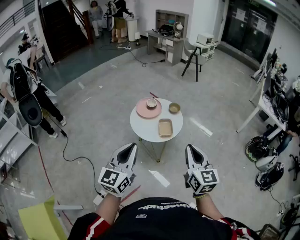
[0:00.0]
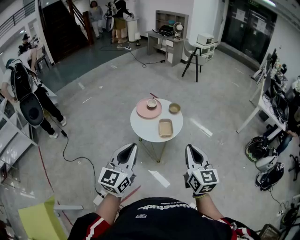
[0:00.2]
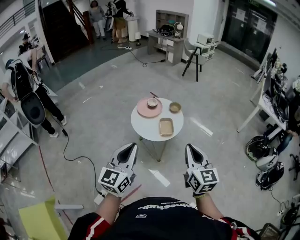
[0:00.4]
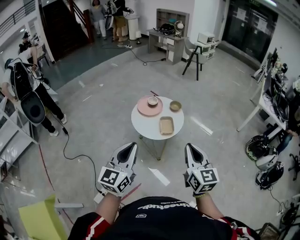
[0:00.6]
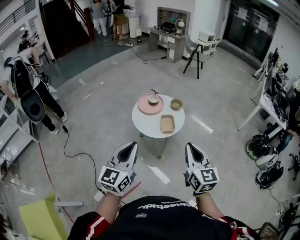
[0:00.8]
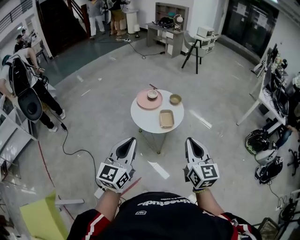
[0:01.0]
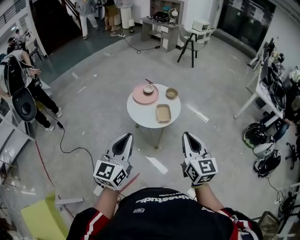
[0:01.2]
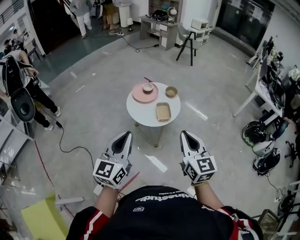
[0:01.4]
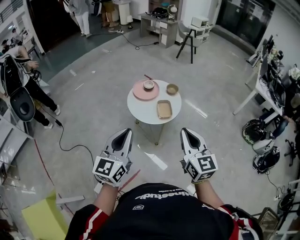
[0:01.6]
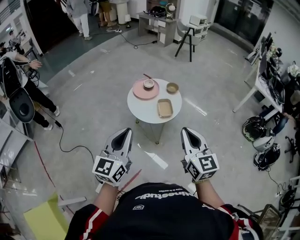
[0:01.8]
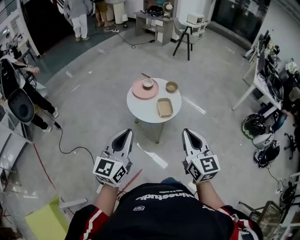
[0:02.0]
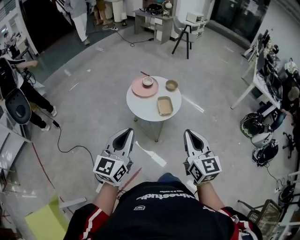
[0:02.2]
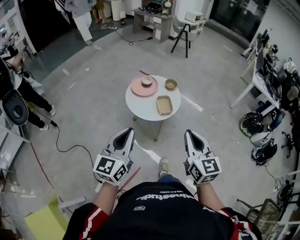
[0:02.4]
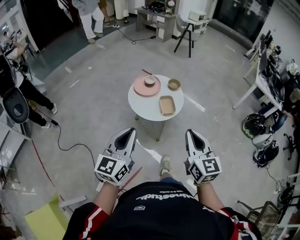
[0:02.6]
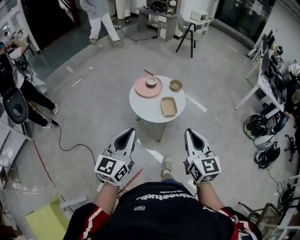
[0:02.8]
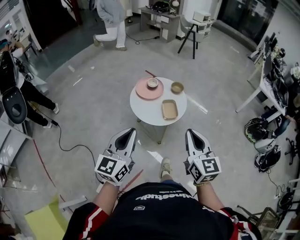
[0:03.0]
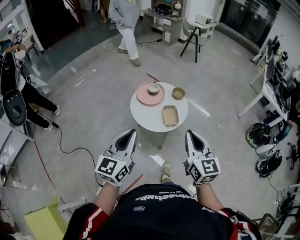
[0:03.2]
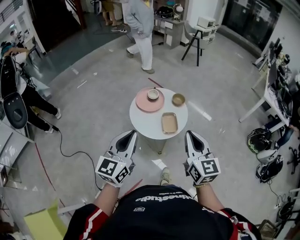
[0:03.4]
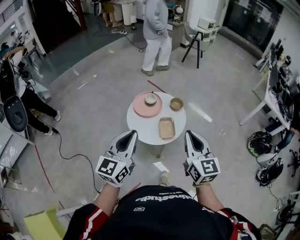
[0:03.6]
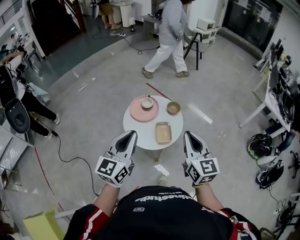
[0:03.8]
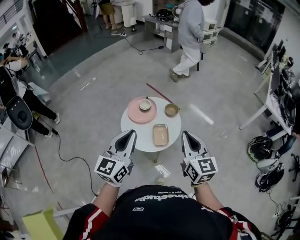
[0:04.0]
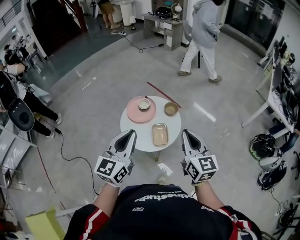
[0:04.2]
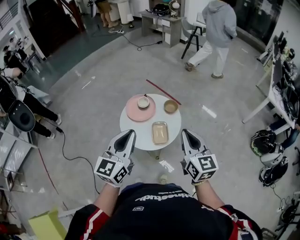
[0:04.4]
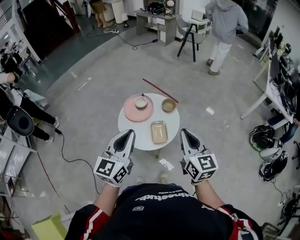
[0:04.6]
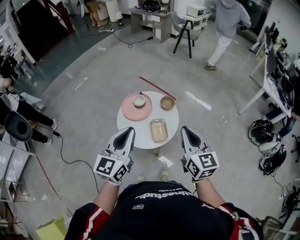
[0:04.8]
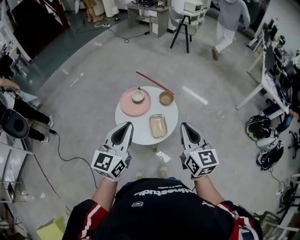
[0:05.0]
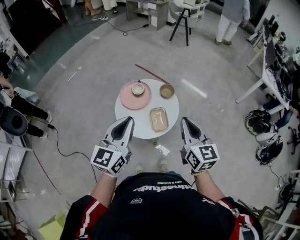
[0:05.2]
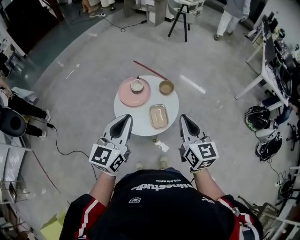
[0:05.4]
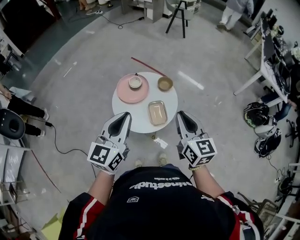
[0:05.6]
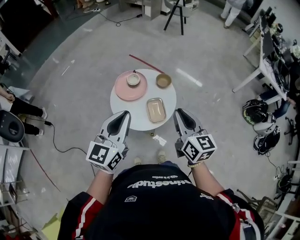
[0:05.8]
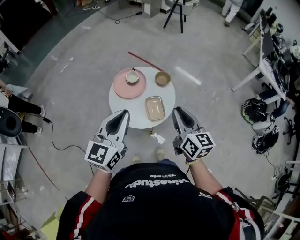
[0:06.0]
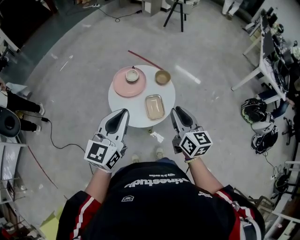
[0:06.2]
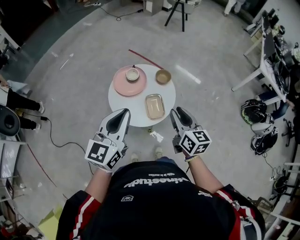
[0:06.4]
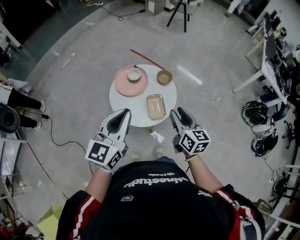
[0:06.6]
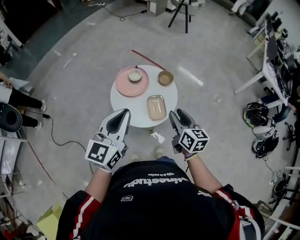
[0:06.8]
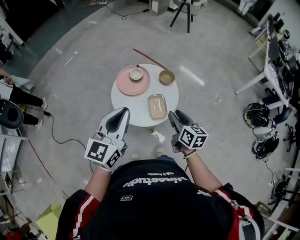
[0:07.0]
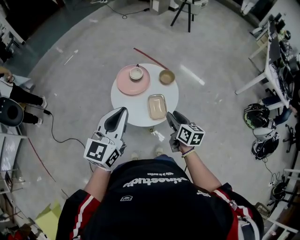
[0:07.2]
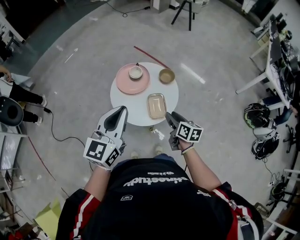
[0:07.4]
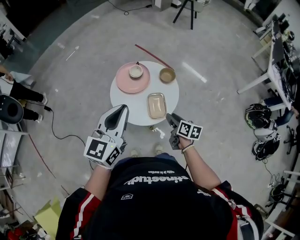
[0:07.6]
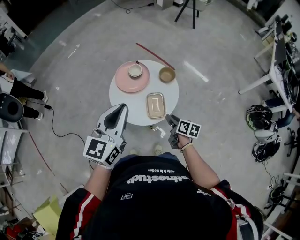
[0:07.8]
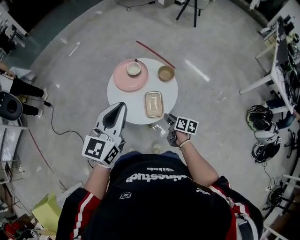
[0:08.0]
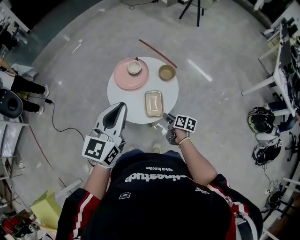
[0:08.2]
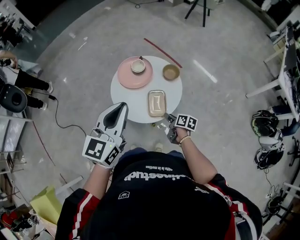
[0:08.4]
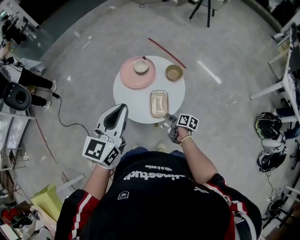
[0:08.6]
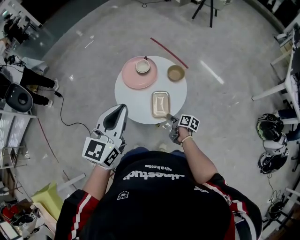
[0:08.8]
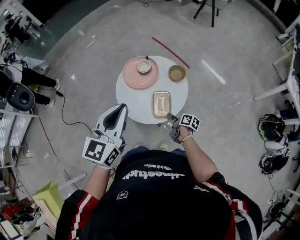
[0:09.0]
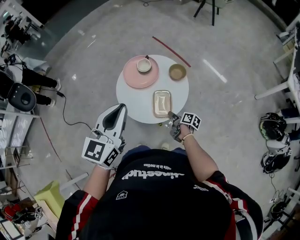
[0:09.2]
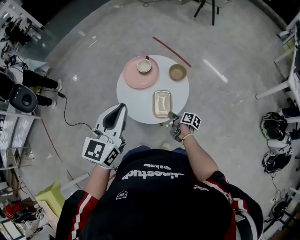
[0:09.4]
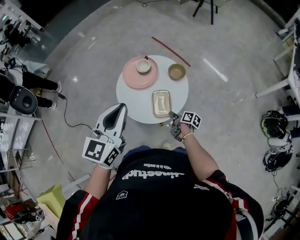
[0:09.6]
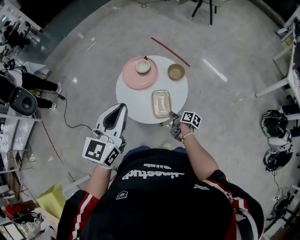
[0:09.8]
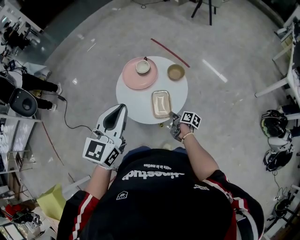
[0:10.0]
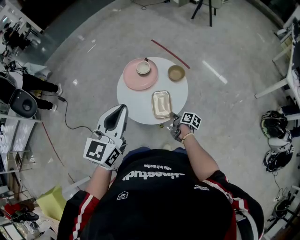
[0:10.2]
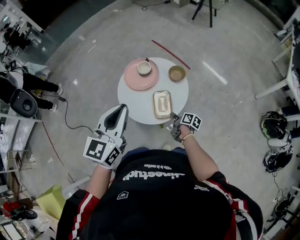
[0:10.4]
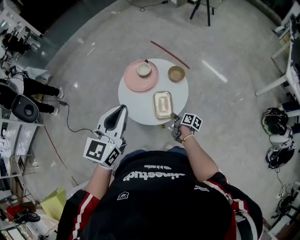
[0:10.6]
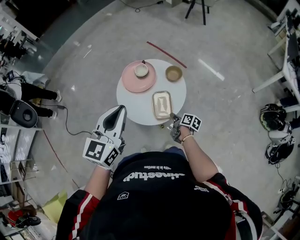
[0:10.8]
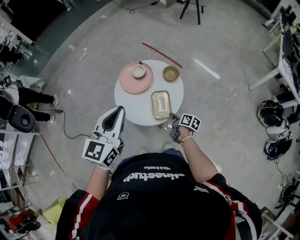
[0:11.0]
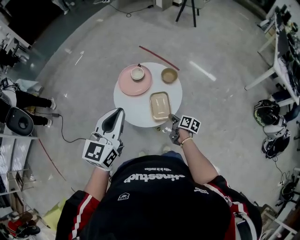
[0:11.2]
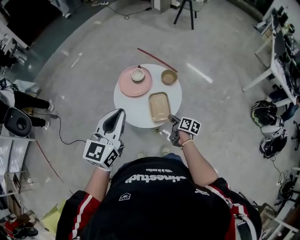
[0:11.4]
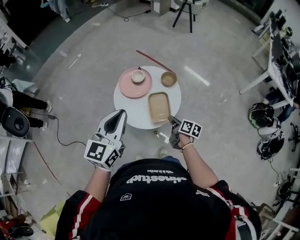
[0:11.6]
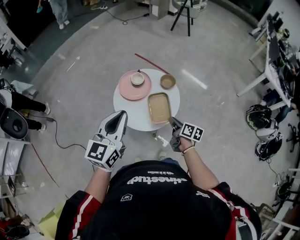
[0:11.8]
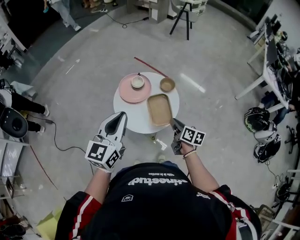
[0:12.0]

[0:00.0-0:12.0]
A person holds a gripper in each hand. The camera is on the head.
0:00.0 to 0:01.6: The right gripper shifts approximately 5 cm to the left.
0:01.6 to 0:03.0: Both grippers move forward, roughly 5 cm.
0:03.0 to 0:04.4: Both grippers move forward and to the right, approximately 25 cm.
0:04.4 to 0:06.0: The right gripper shifts roughly 10 cm downward and to the left. The left gripper ends up about 5 cm from where it was.
0:06.0 to 0:07.6: The right gripper shifts approximately 20 cm downward, turns by some 30 degrees, and opens.
0:07.6 to 0:09.0: The right gripper goes about 15 cm downward, and changes its angle by some 30 degrees.
0:09.0 to 0:10.4: The right gripper closes.
0:10.4 to 0:12.0: The right gripper shifts some 20 cm upward, and changes its angle by roughly 30 degrees; the left gripper moves to the left, roughly 10 cm.

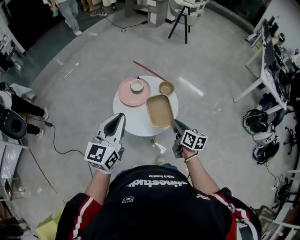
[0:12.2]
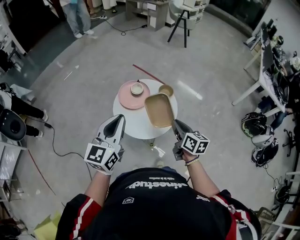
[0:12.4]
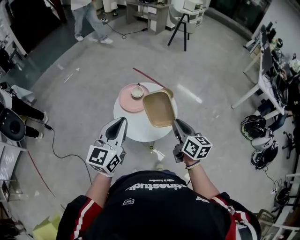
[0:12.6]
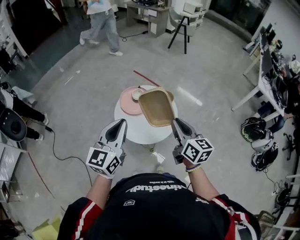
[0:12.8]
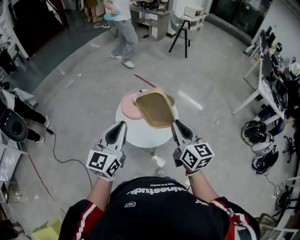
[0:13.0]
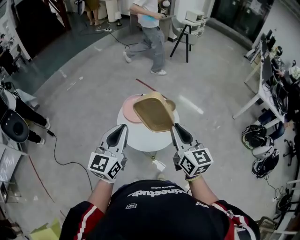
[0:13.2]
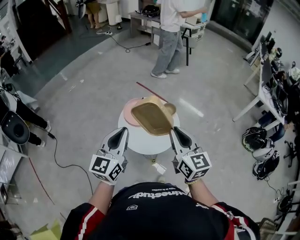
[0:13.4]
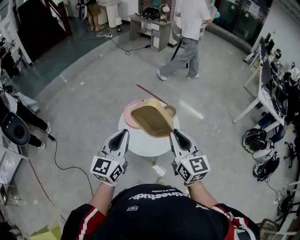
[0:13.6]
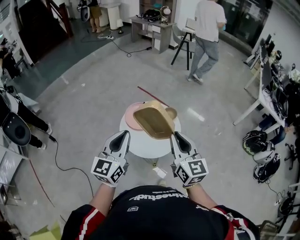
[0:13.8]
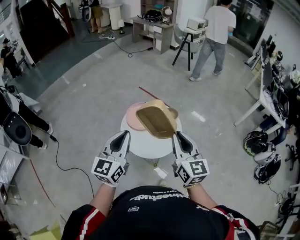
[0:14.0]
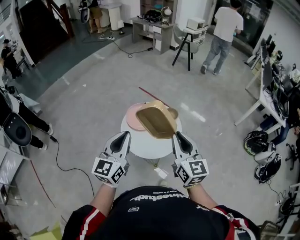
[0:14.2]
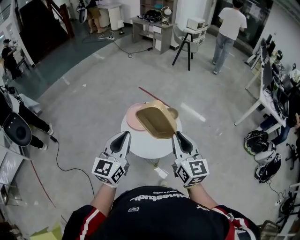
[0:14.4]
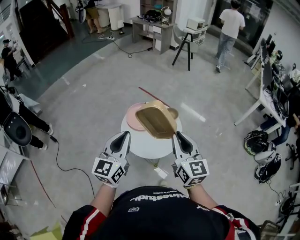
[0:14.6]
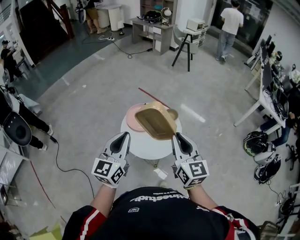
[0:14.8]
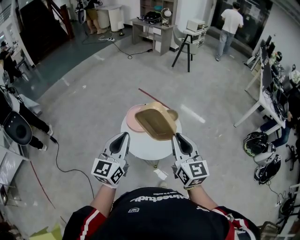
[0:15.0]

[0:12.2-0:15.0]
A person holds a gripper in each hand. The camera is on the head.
0:12.2 to 0:13.6: The right gripper goes approximately 25 cm upward, and changes its angle by roughly 40 degrees.
0:13.6 to 0:15.0: The grippers stay close to where they were, moving slightly.

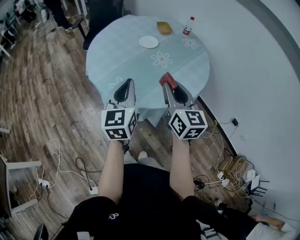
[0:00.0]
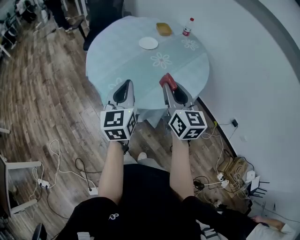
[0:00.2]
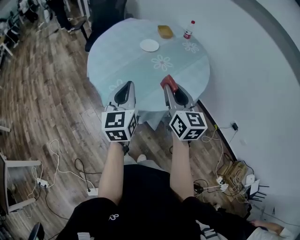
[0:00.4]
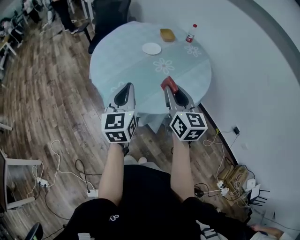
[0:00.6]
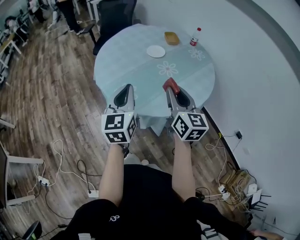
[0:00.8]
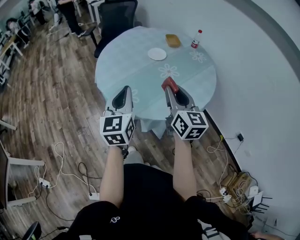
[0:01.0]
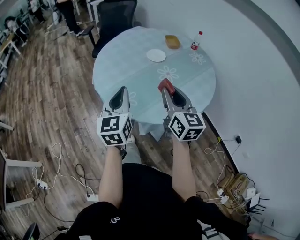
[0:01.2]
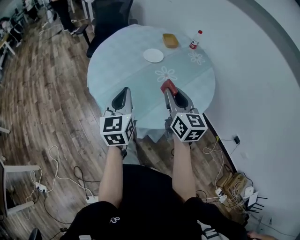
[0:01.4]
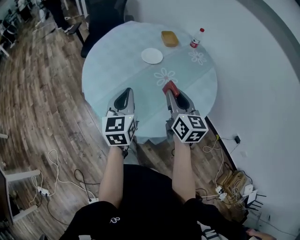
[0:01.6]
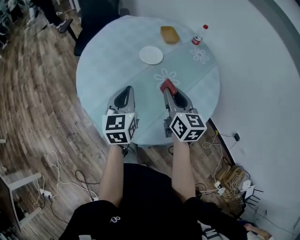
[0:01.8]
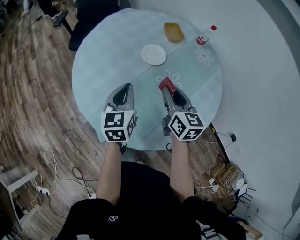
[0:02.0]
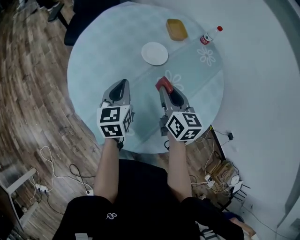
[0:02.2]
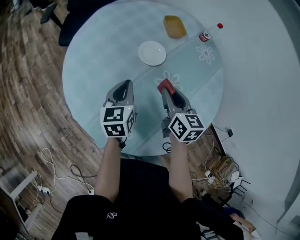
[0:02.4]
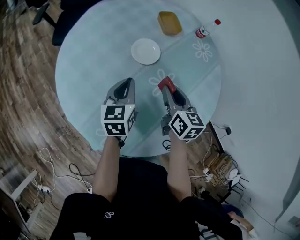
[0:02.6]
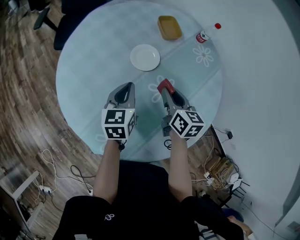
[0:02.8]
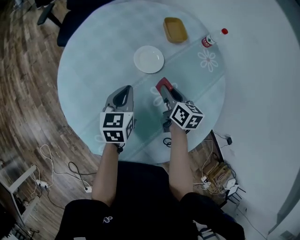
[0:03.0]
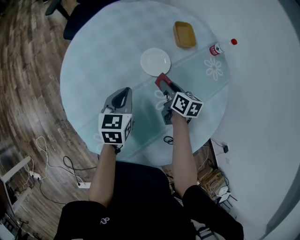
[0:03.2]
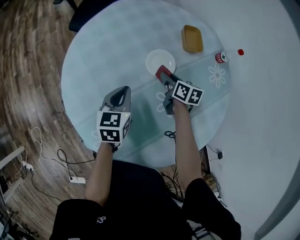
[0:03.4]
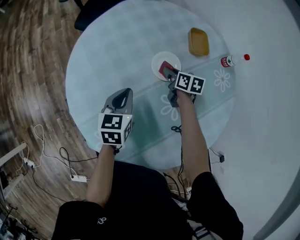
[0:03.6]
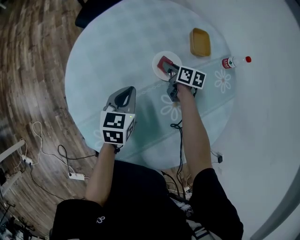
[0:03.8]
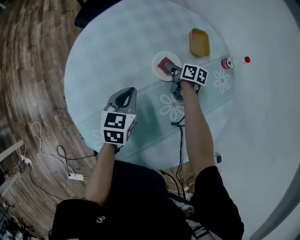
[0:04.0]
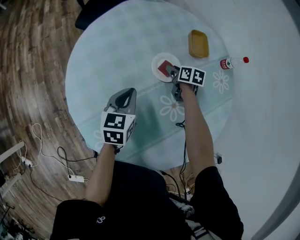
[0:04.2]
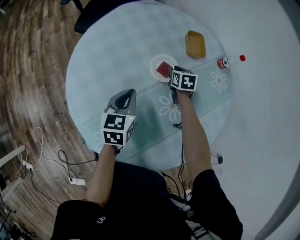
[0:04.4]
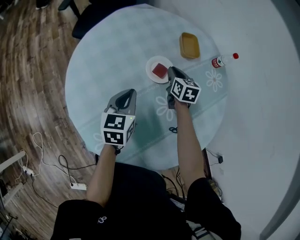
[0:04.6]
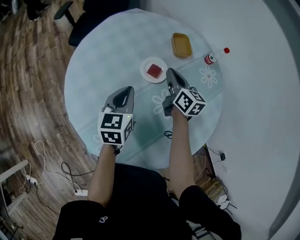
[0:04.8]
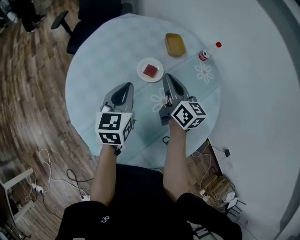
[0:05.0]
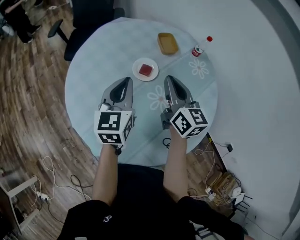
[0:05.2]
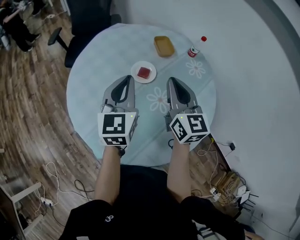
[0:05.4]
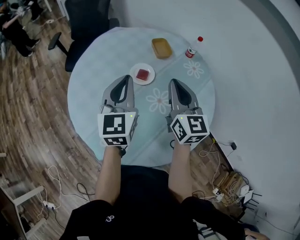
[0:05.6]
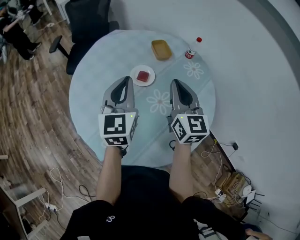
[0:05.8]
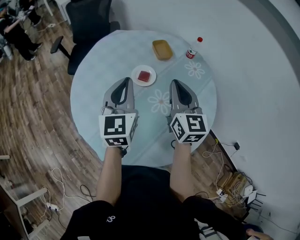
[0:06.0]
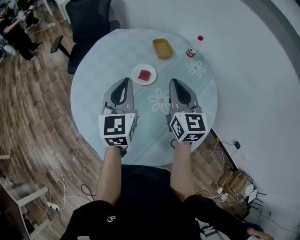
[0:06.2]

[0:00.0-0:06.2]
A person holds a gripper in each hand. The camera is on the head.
0:00.0 to 0:01.6: The grippers both shift forward by about 15 cm.
0:01.6 to 0:03.2: Both grippers move forward and downward, about 35 cm. The right gripper turns by approximately 30 degrees, while the left gripper turns by some 20 degrees.
0:03.2 to 0:04.6: The right gripper goes roughly 10 cm forward, changes its angle by about 20 degrees, and opens, then closes again.
0:04.6 to 0:06.2: The left gripper travels upward by approximately 20 cm, and rotates roughly 30 degrees; the right gripper heads upward and backward, covering roughly 30 cm, and angles its fingers upward, by some 30 degrees.

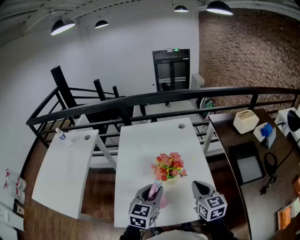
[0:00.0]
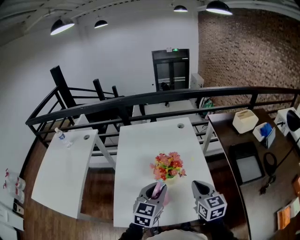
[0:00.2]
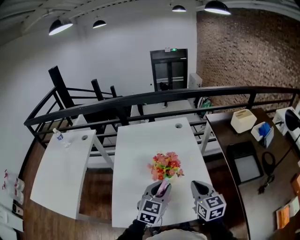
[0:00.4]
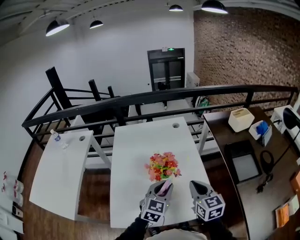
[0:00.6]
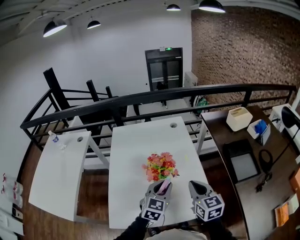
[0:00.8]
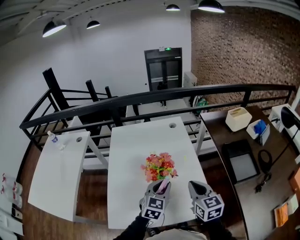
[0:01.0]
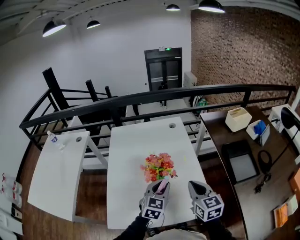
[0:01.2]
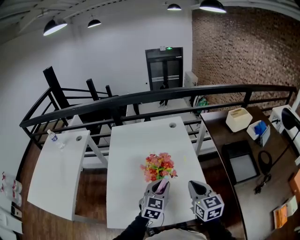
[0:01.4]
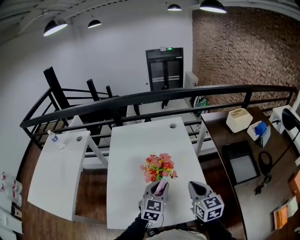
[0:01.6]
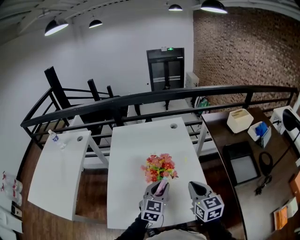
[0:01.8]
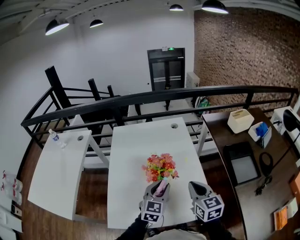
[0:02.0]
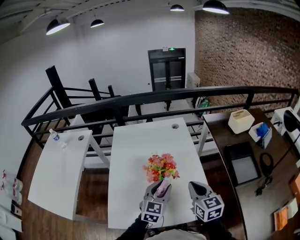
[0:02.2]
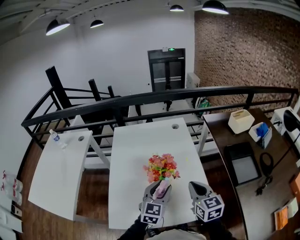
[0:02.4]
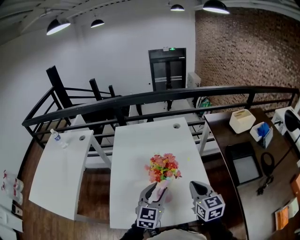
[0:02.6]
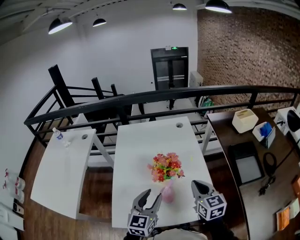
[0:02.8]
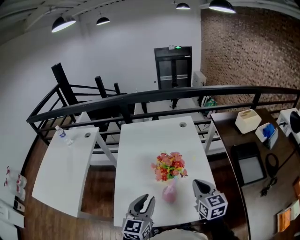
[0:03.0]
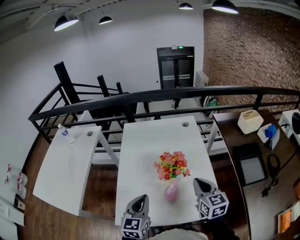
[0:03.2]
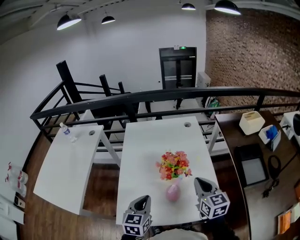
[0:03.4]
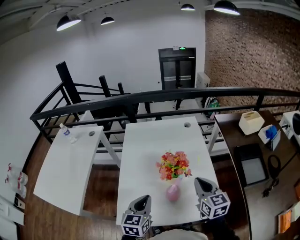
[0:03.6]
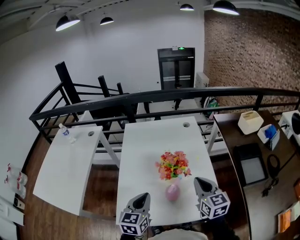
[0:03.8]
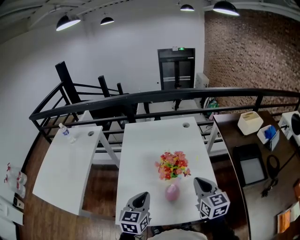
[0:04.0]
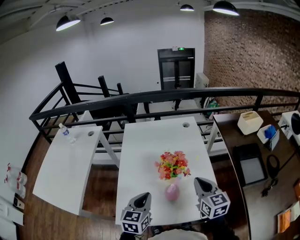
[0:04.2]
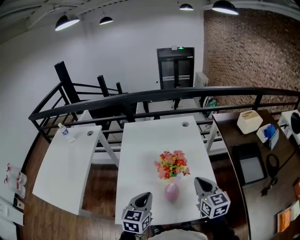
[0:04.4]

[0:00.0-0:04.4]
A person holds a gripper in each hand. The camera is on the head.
0:00.0 to 0:01.4: The left gripper moves to the right, forward and downward, approximately 10 cm.
0:01.4 to 0:03.0: The left gripper shifts about 15 cm to the left and backward.
0:03.0 to 0:04.4: The left gripper closes.
